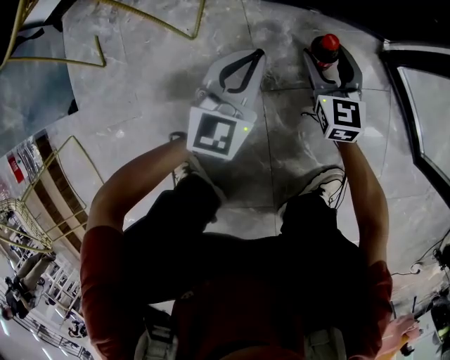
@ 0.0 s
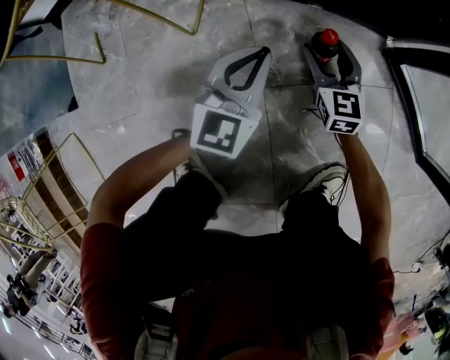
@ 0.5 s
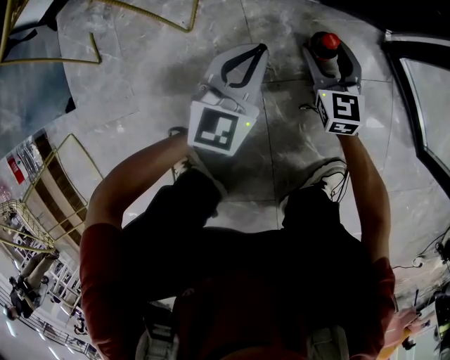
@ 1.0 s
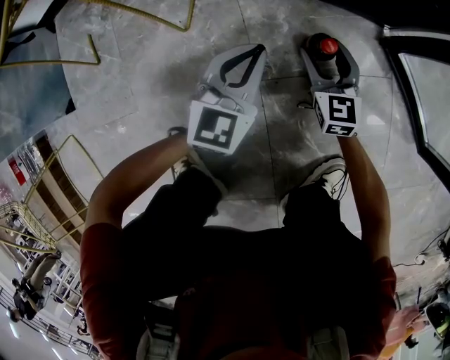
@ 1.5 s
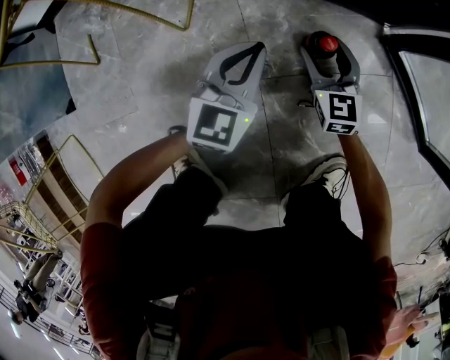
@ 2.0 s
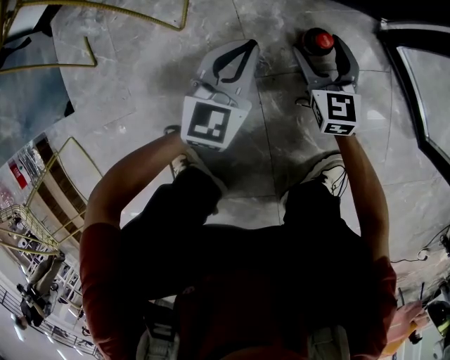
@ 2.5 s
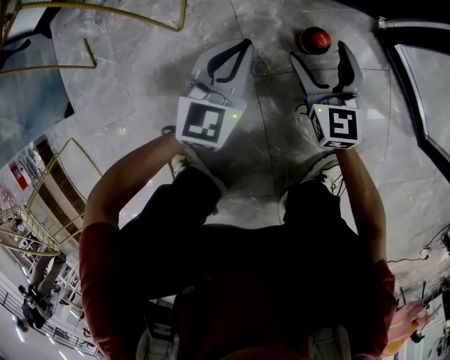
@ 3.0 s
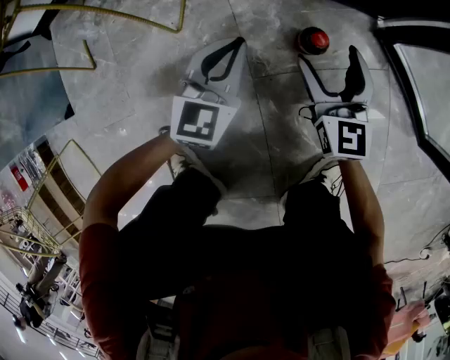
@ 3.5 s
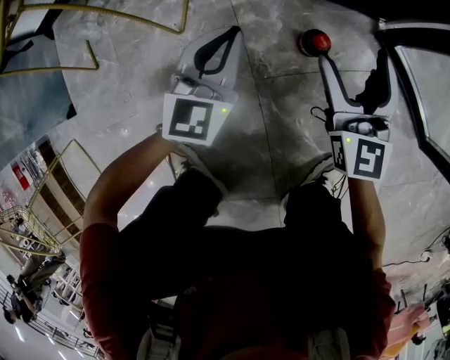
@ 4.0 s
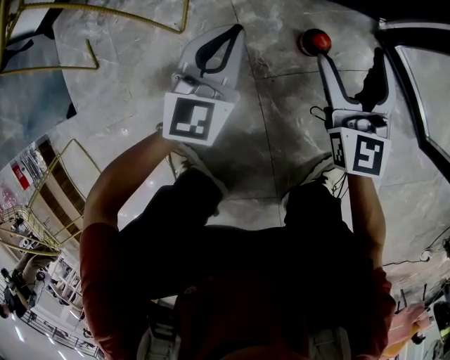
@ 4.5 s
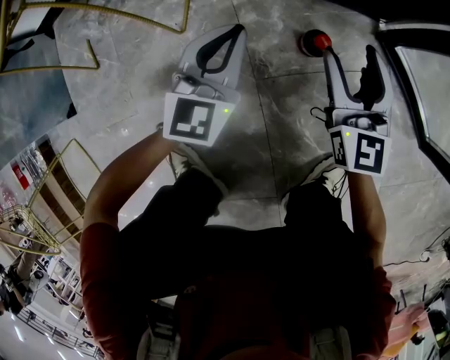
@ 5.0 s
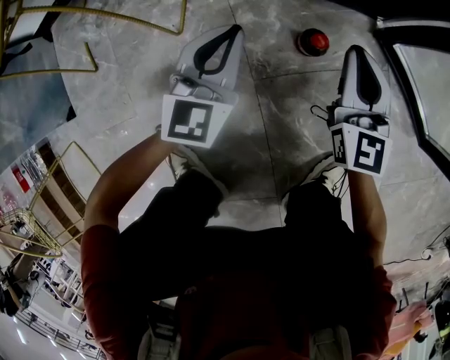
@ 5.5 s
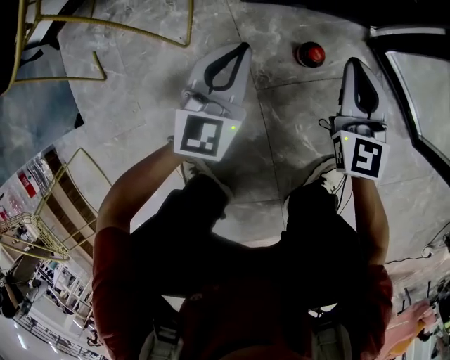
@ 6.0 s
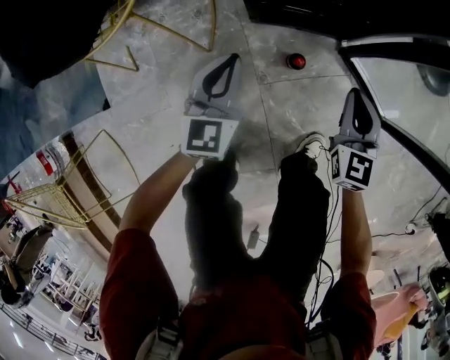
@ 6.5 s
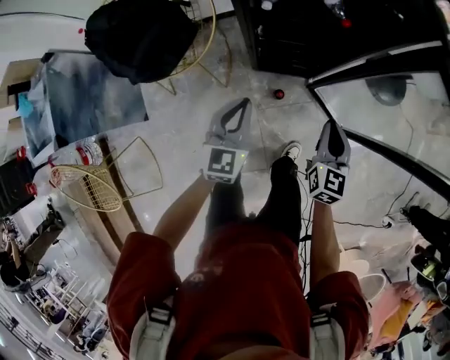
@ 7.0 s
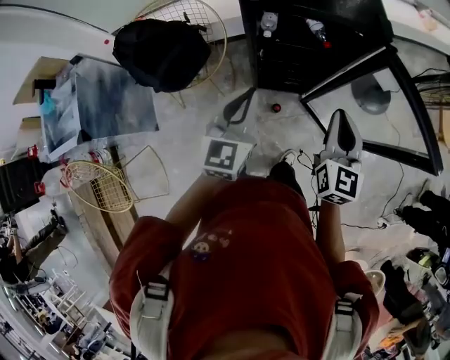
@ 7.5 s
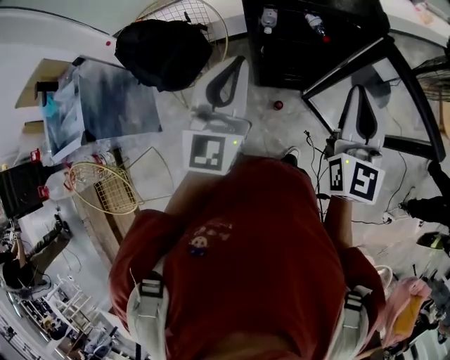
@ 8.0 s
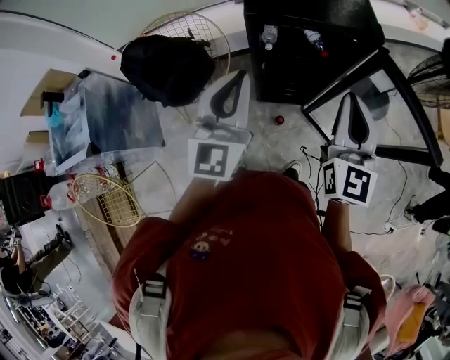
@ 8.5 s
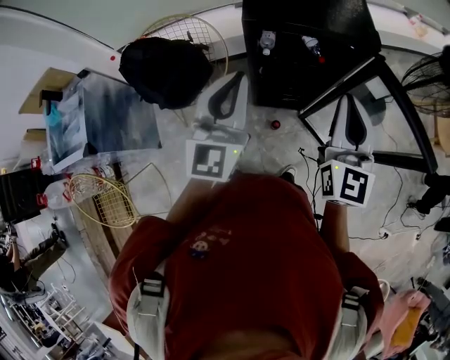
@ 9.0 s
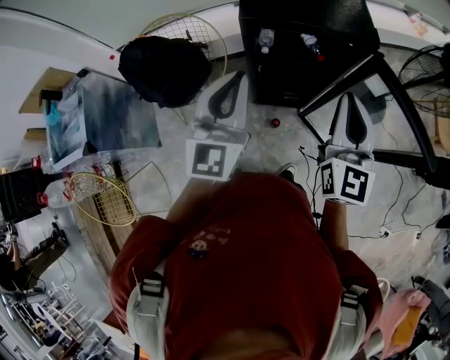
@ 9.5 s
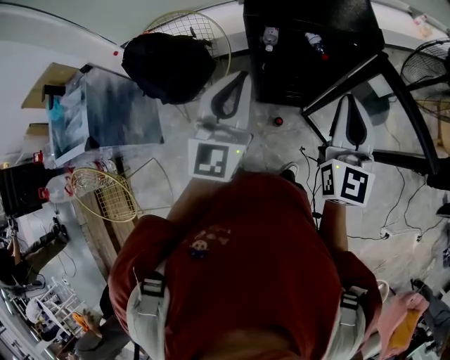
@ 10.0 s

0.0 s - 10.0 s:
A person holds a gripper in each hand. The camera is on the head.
0.0 s - 2.0 s: The grippers move only a little.
2.0 s - 4.0 s: The right gripper goes about 15 cm upward.
4.0 s - 6.0 s: The right gripper closes.
6.0 s - 8.0 s: The two grippers go roughly 1 m upward. The left gripper turns by some 20 degrees.
8.0 s - 10.0 s: The grippers move only a little.

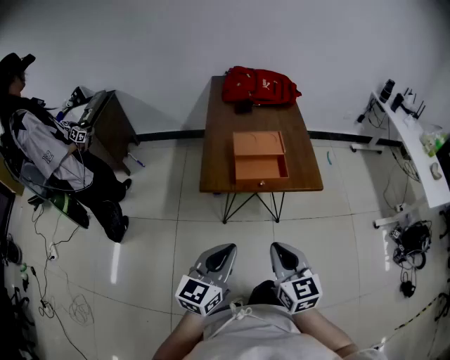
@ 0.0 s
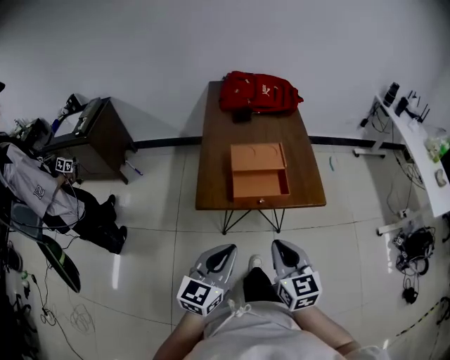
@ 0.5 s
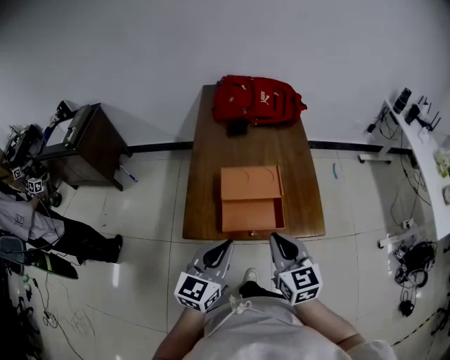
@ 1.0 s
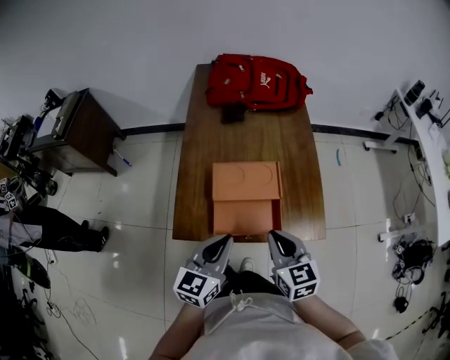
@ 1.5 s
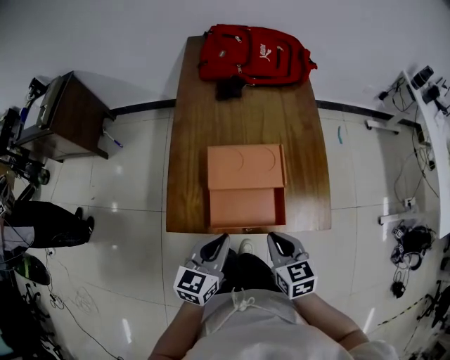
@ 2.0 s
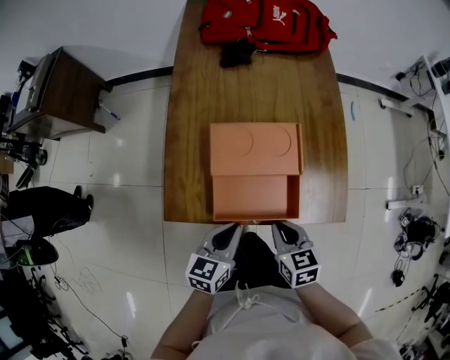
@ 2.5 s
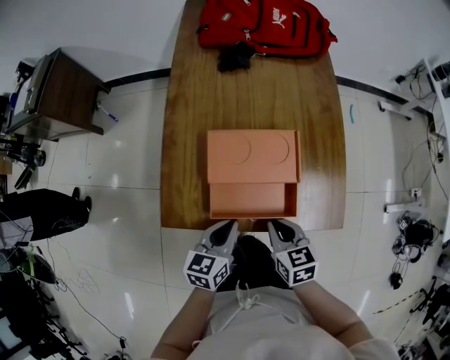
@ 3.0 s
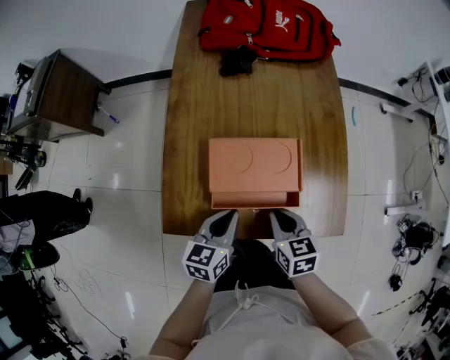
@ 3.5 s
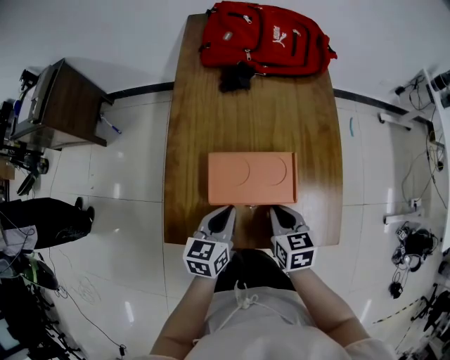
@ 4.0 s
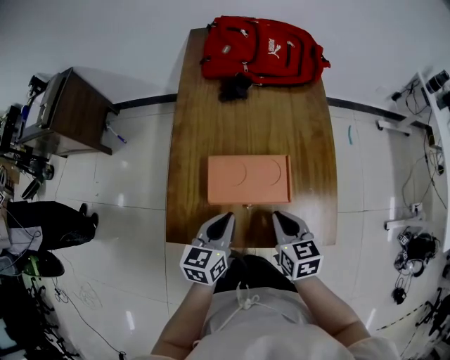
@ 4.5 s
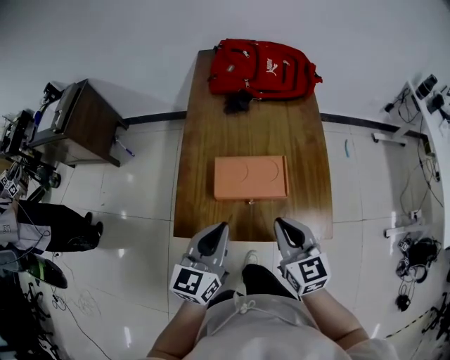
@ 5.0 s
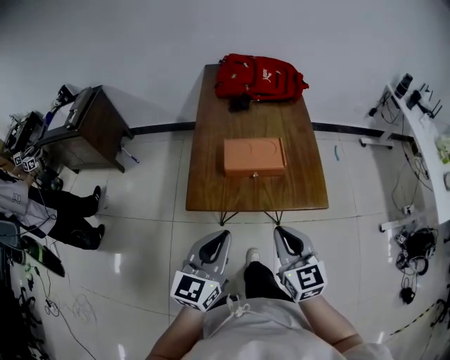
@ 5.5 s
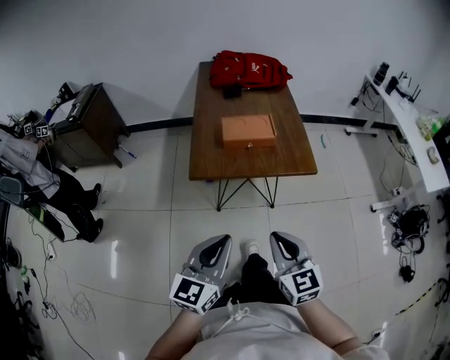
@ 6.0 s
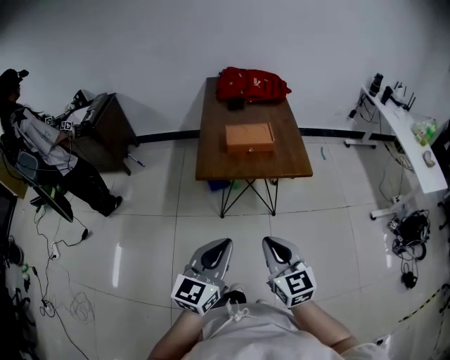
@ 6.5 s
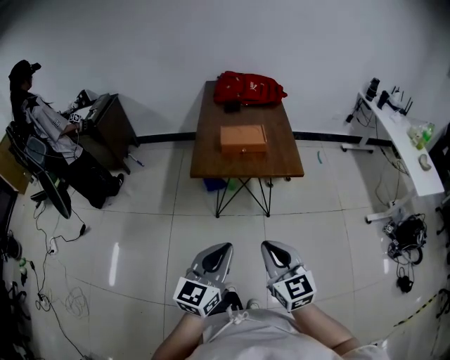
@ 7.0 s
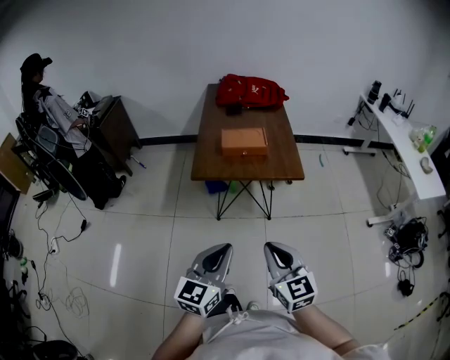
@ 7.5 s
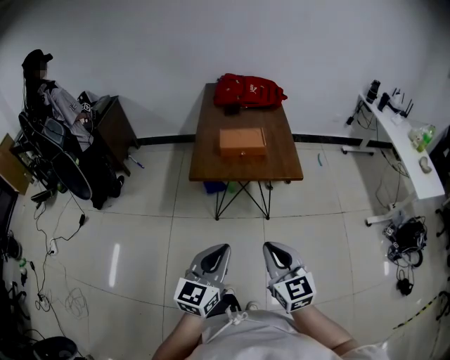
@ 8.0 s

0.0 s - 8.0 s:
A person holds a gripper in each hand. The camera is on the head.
0.0 s - 2.0 s: Both grippers move forward and downward, approximately 30 cm. The right gripper swivels approximately 20 degrees.
2.0 s - 4.0 s: Both grippers travel together forward and downward, some 15 cm.
4.0 s - 6.0 s: Both grippers are carried backward, approximately 40 cm. Both grippers move upward, approximately 20 cm. The left gripper swivels some 30 degrees; the right gripper turns by approximately 30 degrees.
6.0 s - 8.0 s: Both grippers travel together backward, approximately 10 cm.

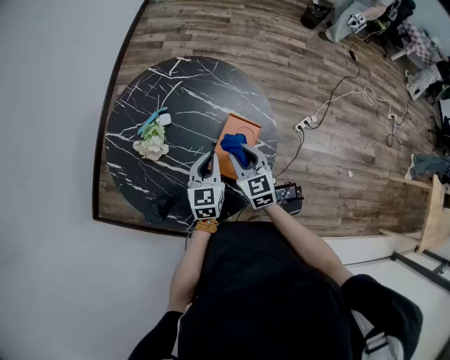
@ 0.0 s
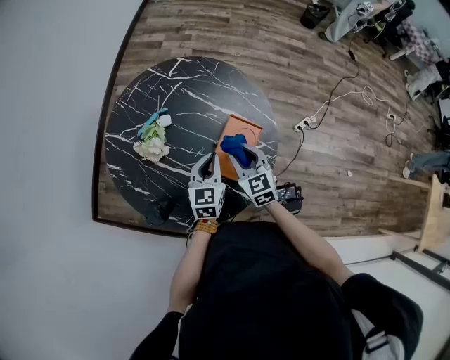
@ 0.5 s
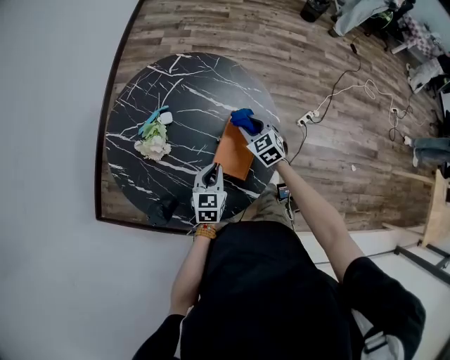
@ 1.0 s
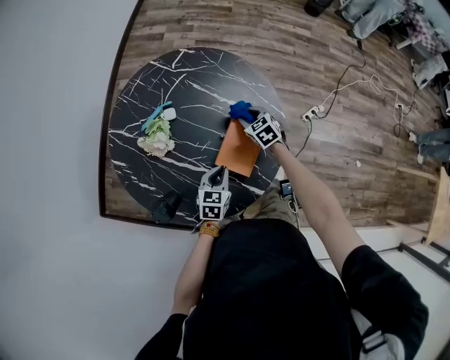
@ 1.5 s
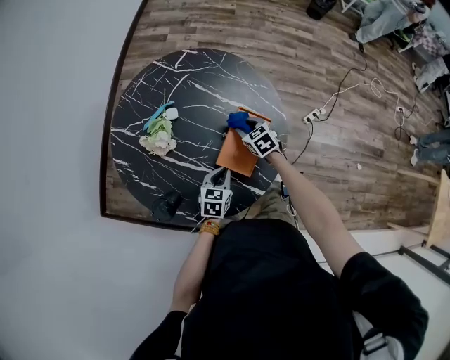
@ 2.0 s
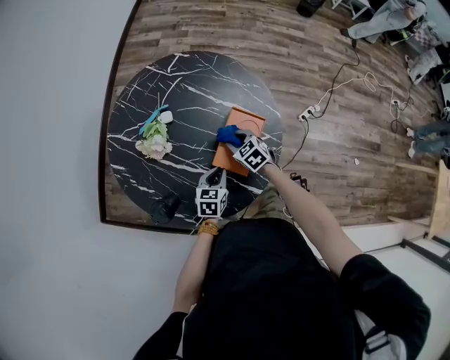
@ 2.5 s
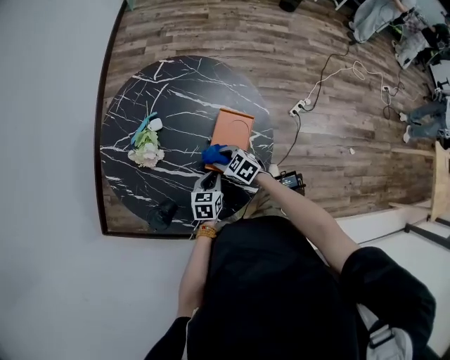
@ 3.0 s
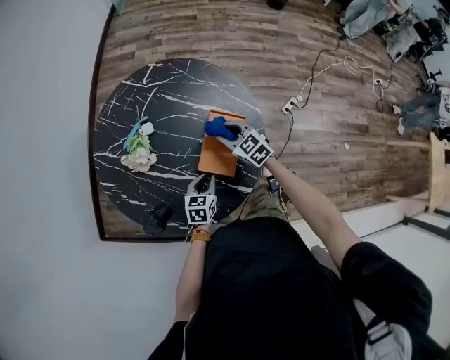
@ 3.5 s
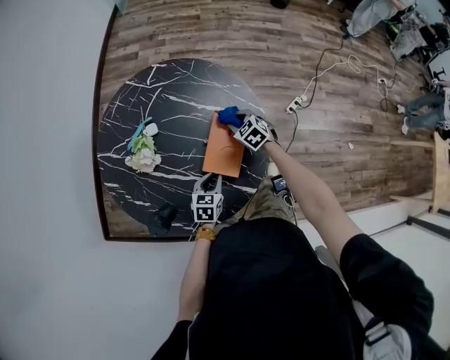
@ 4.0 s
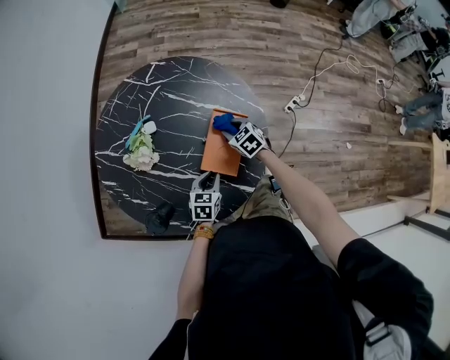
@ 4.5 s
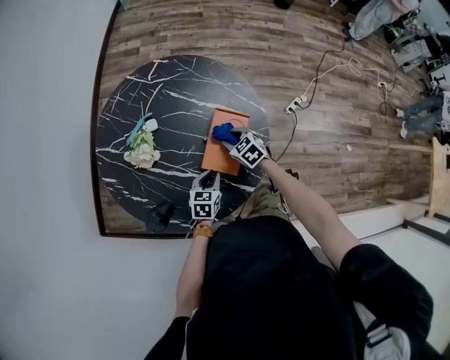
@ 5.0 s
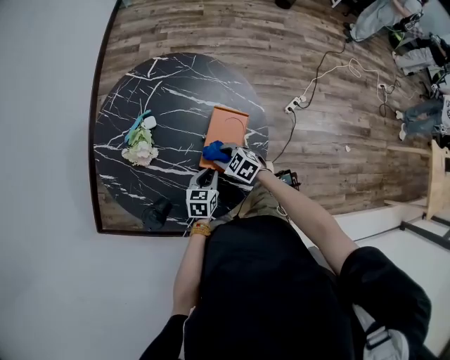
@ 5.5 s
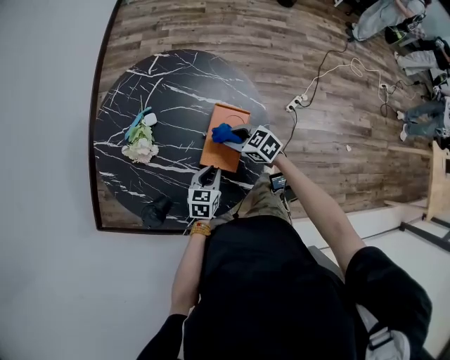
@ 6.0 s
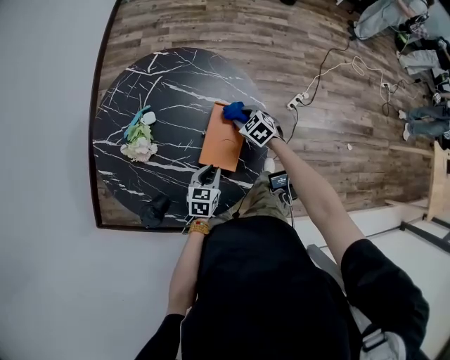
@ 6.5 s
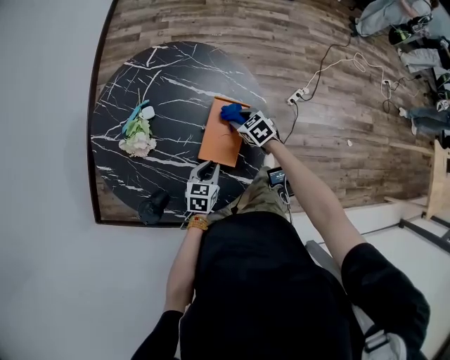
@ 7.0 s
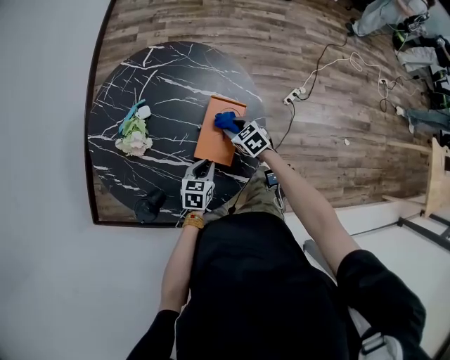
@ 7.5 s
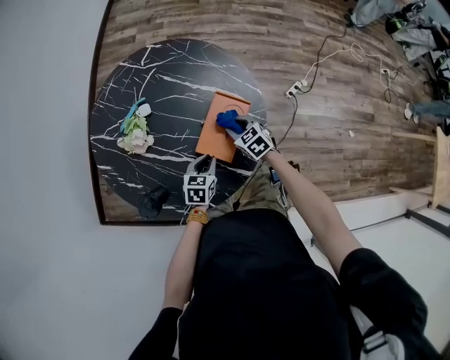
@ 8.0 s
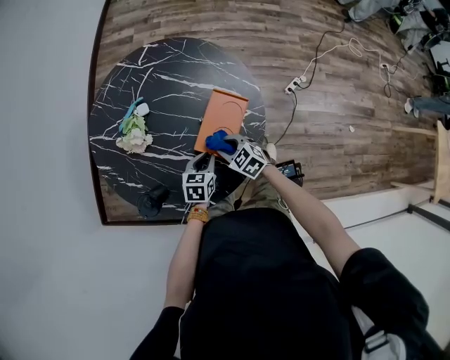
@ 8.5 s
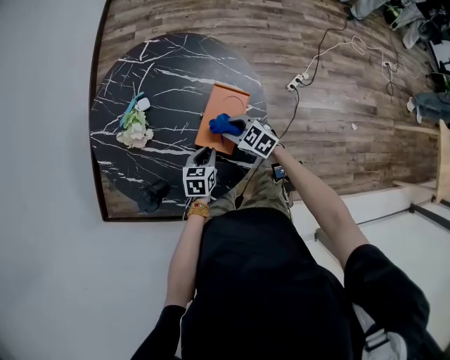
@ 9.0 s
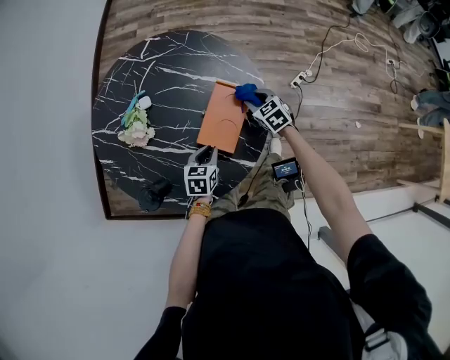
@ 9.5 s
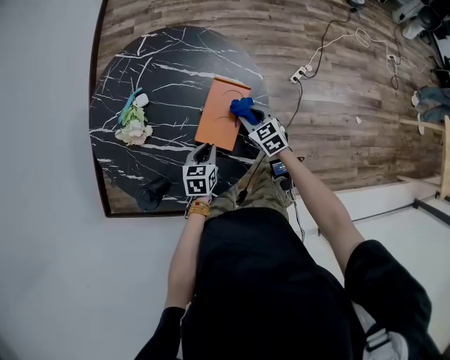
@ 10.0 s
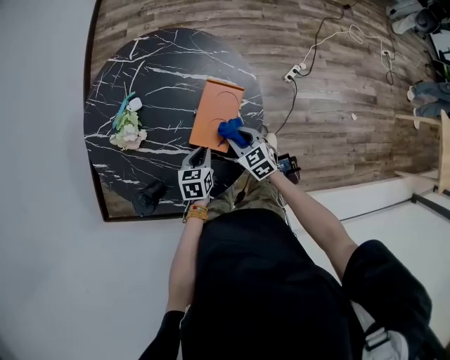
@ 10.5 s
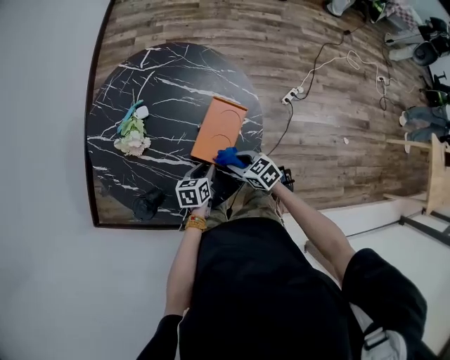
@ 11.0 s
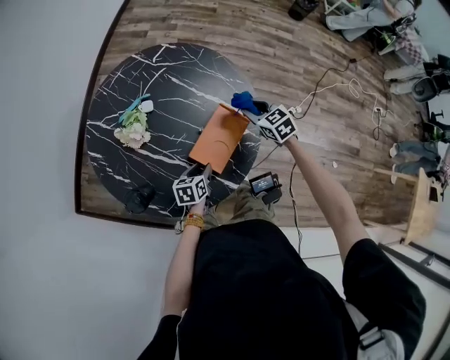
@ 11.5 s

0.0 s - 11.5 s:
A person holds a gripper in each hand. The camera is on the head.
0.0 s - 2.0 s: The right gripper is displaced downward and forward by roughly 15 cm, and rotates roughly 30 degrees. Meanwhile the left gripper heads downward and backward, covering roughly 15 cm, and swivels approximately 30 degrees.
2.0 s - 4.0 s: The right gripper travels to the right by roughly 5 cm.
4.0 s - 6.0 s: The right gripper moves backward and to the left, about 10 cm, and changes its angle by approximately 20 degrees.
6.0 s - 7.5 s: The right gripper goes some 5 cm downward.
7.5 s - 9.5 s: The right gripper is displaced to the right by about 10 cm.
9.5 s - 11.5 s: The left gripper changes its angle by about 30 degrees; the right gripper is displaced upward by roughly 10 cm, and reaches some 15 cm backward, then returns.
